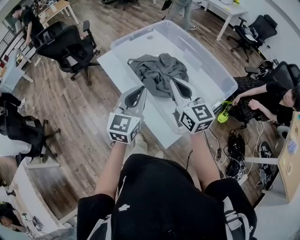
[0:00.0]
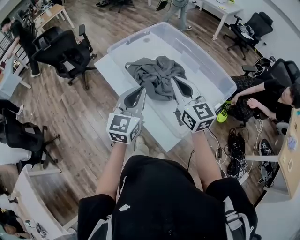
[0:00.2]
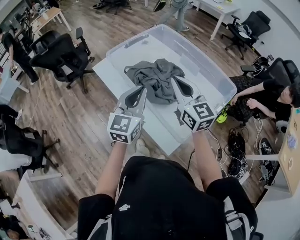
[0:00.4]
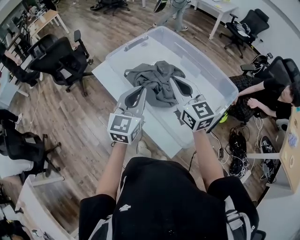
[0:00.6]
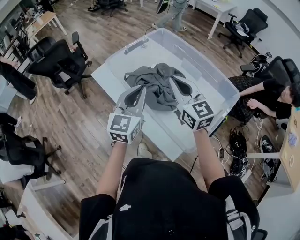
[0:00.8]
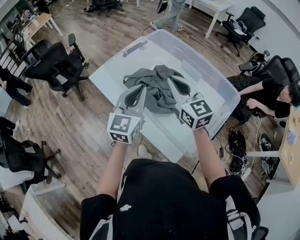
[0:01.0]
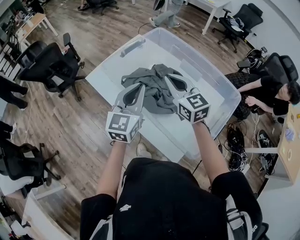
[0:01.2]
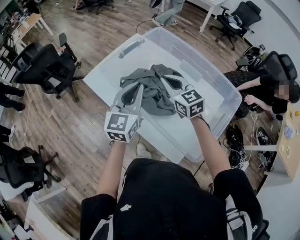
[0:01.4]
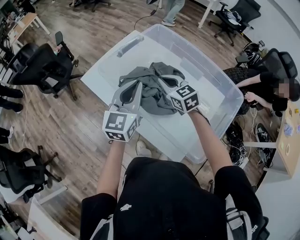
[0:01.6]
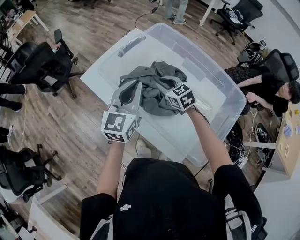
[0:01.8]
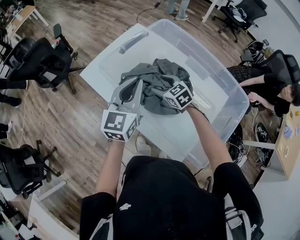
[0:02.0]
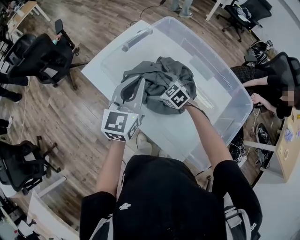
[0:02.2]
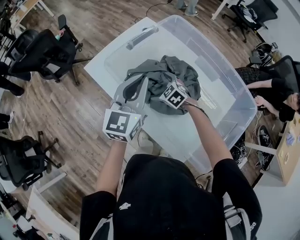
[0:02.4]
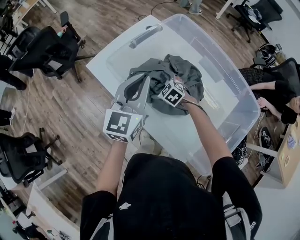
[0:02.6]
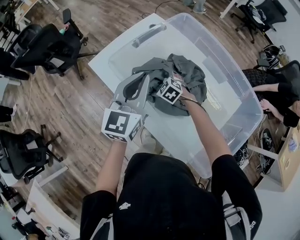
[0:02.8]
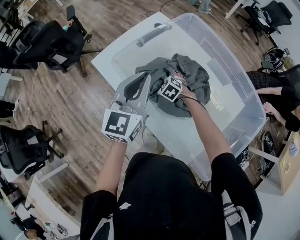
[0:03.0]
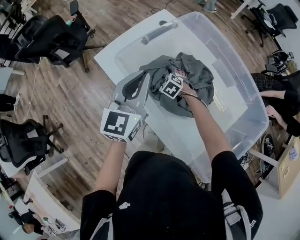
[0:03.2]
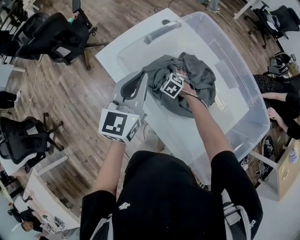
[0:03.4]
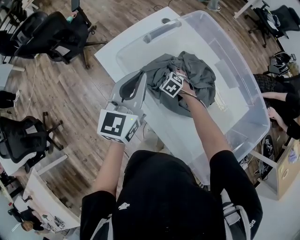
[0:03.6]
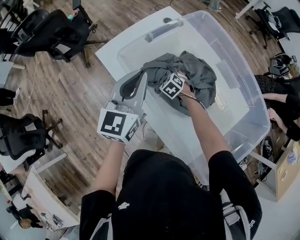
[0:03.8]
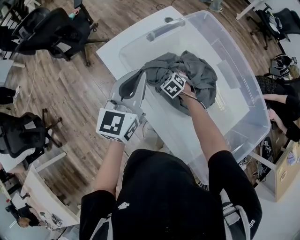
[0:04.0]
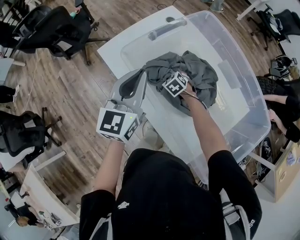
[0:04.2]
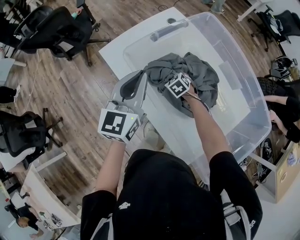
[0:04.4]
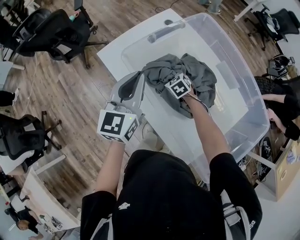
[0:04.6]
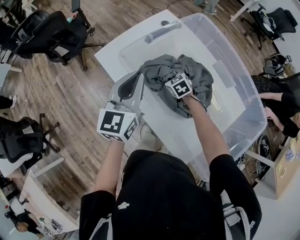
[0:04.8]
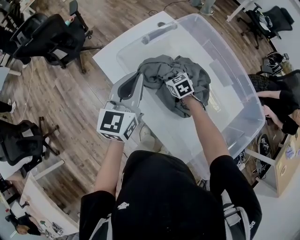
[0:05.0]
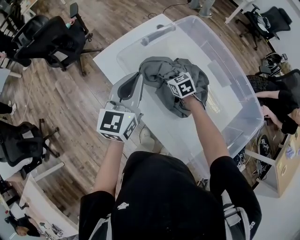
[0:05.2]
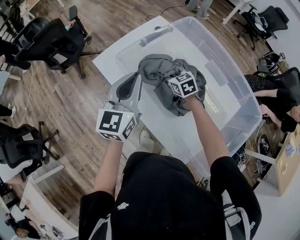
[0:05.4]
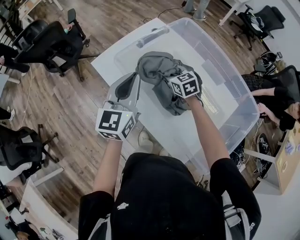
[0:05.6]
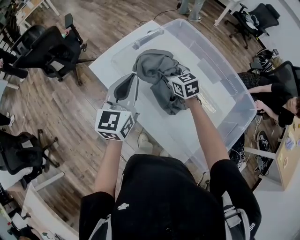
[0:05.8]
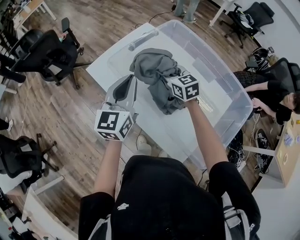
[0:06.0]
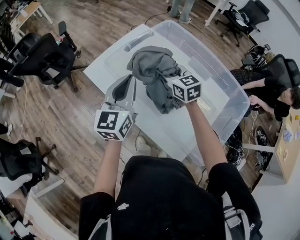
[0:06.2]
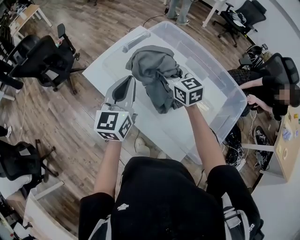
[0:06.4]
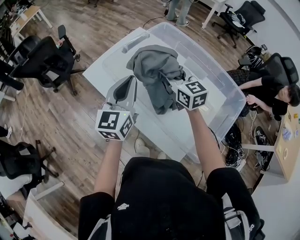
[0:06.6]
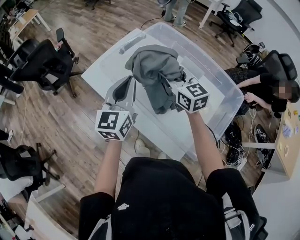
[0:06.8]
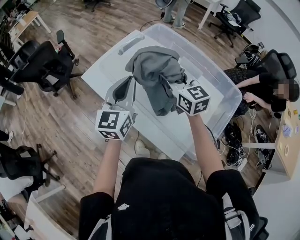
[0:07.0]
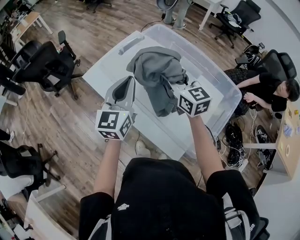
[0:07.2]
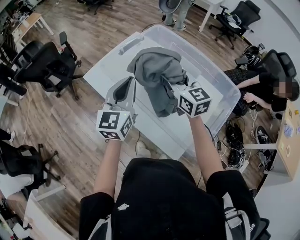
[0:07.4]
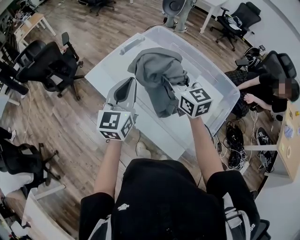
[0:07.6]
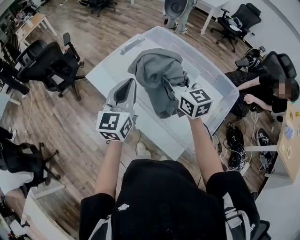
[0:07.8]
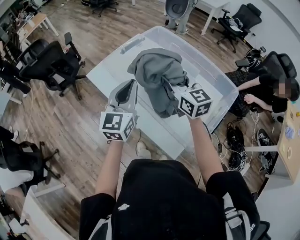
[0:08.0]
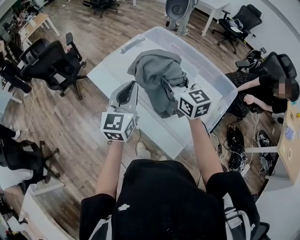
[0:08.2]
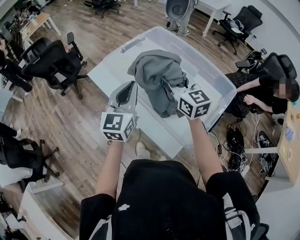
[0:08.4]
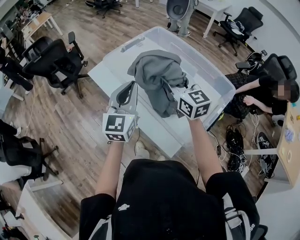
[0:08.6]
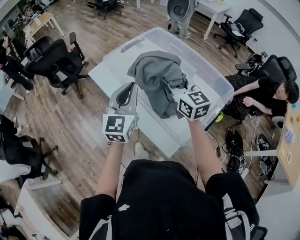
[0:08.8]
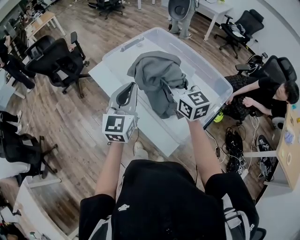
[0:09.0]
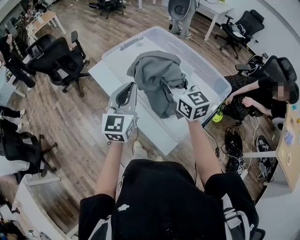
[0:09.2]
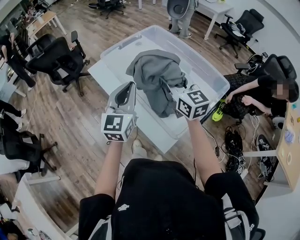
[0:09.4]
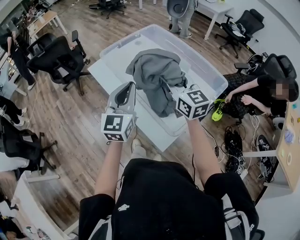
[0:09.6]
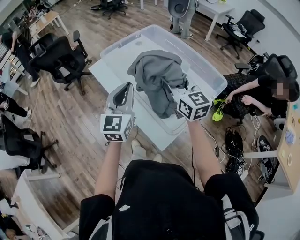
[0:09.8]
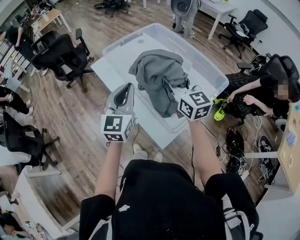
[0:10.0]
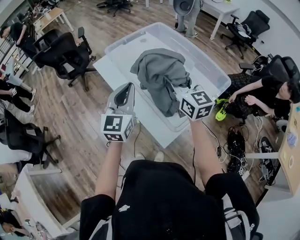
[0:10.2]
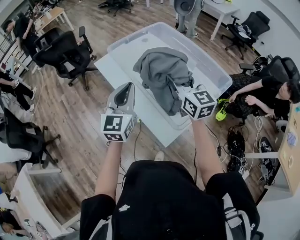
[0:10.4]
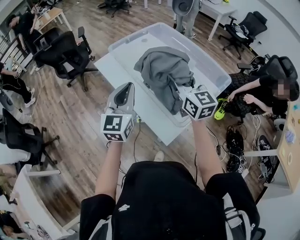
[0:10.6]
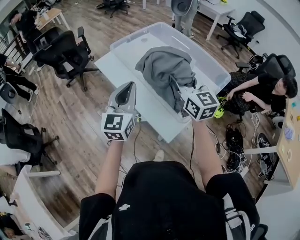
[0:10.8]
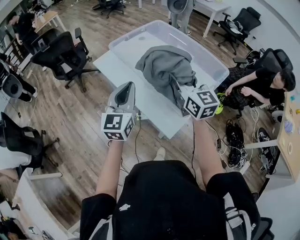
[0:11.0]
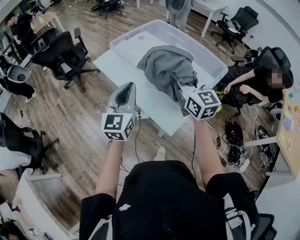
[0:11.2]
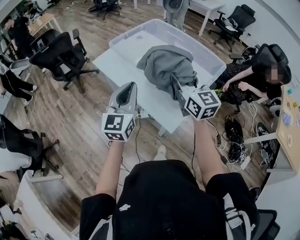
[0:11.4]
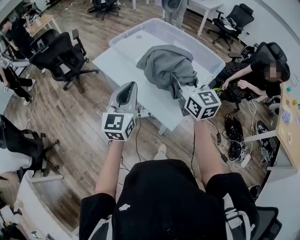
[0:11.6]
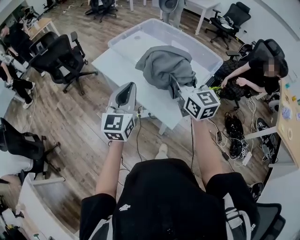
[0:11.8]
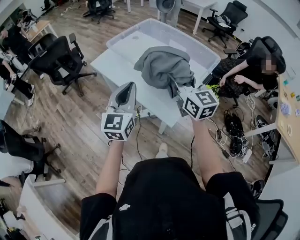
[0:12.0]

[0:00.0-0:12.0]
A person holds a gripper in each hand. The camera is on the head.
0:00.0 to 0:01.6: The right gripper is displaced forward and downward by some 25 cm, and swivels some 30 degrees. Meanwhile the left gripper is displaced forward by roughly 20 cm.
0:01.6 to 0:03.0: The right gripper goes some 25 cm downward, angles its fingers downward, by about 30 degrees, and opens up, while the left gripper goes about 5 cm forward.
0:03.0 to 0:04.4: The right gripper closes. Meanwhile the left gripper is displaced to the left by roughly 5 cm.
0:04.4 to 0:06.0: The right gripper travels upward by about 25 cm, and tips its fingers upward by roughly 30 degrees. The left gripper shifts by roughly 5 cm.
0:06.0 to 0:07.6: The left gripper shifts about 10 cm backward and to the right. Meanwhile the right gripper moves upward, backward and to the right, some 20 cm.
0:07.6 to 0:09.0: Both grippers move backward, some 5 cm.
0:09.0 to 0:10.4: Both grippers move backward, approximately 5 cm.
0:10.4 to 0:12.0: The grippers both shift backward by about 10 cm.

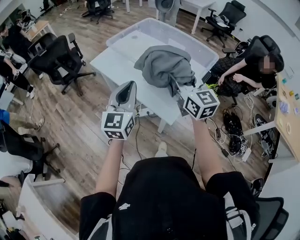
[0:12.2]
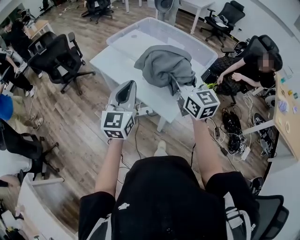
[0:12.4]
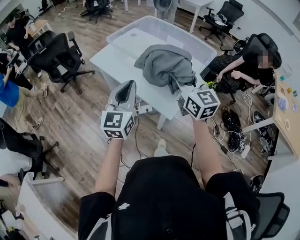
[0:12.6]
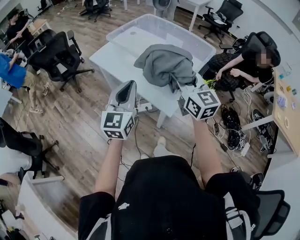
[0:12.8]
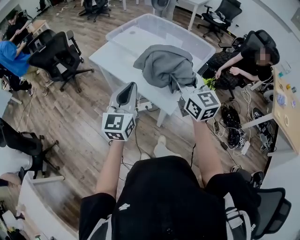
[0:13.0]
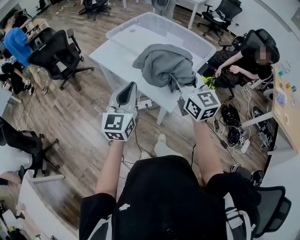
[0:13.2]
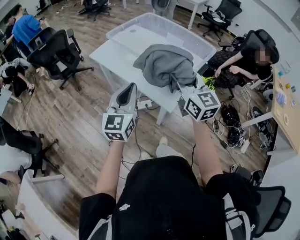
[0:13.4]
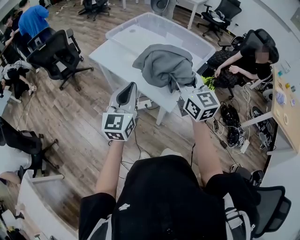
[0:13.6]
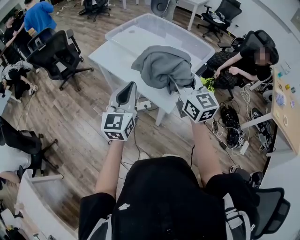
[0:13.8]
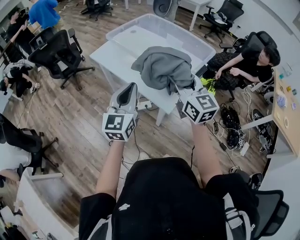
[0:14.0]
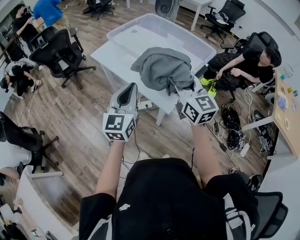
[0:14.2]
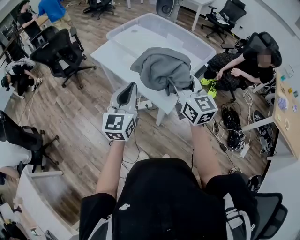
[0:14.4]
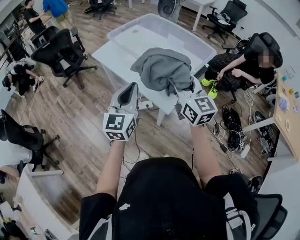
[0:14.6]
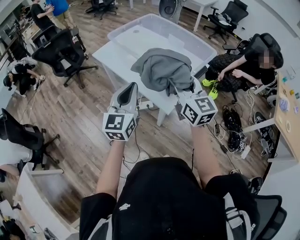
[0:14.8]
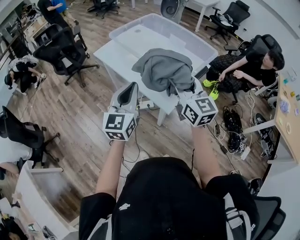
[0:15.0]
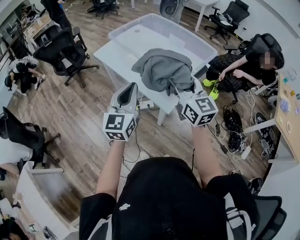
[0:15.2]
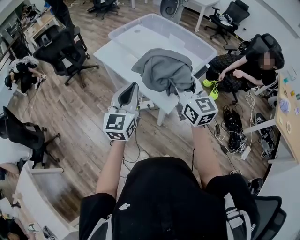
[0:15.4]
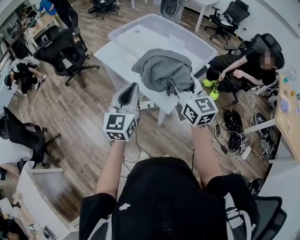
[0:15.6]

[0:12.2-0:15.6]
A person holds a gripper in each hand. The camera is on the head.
0:12.2 to 0:13.8: The grippers both shift backward by approximately 10 cm.
0:13.8 to 0:15.6: The grippers move only a little.

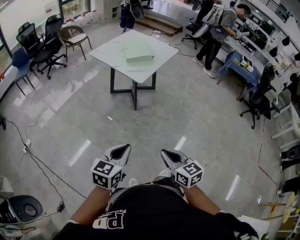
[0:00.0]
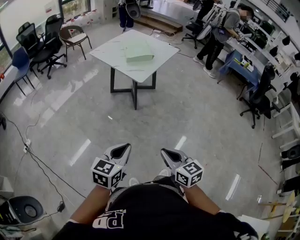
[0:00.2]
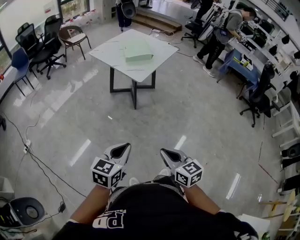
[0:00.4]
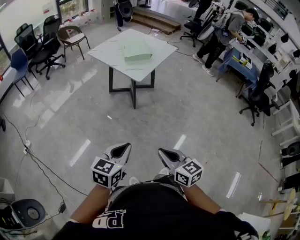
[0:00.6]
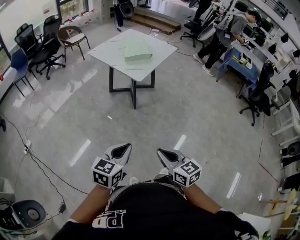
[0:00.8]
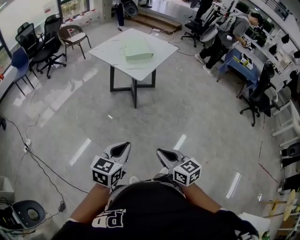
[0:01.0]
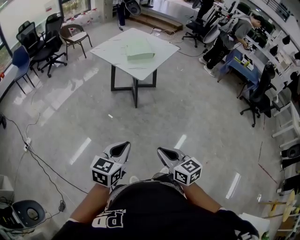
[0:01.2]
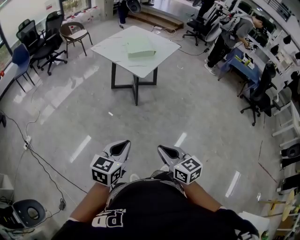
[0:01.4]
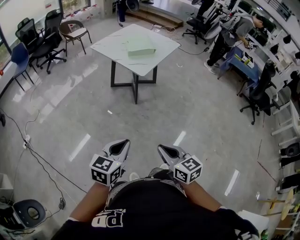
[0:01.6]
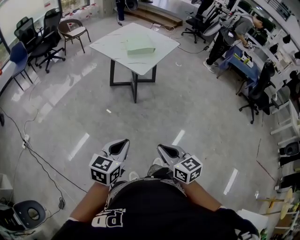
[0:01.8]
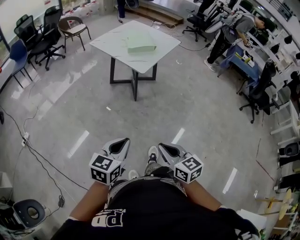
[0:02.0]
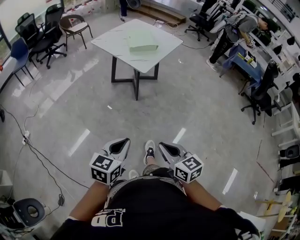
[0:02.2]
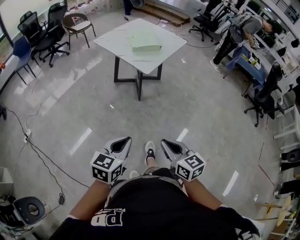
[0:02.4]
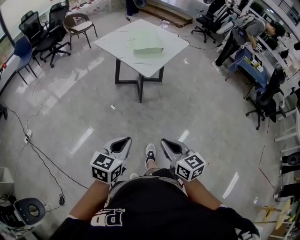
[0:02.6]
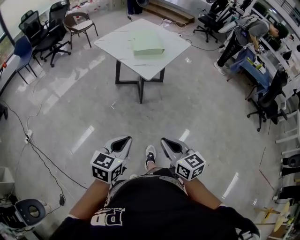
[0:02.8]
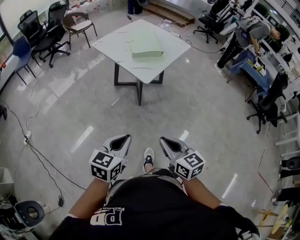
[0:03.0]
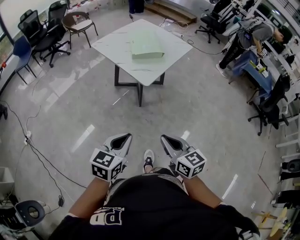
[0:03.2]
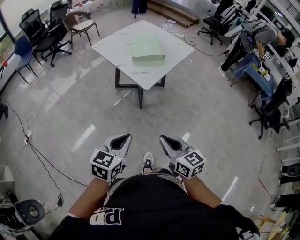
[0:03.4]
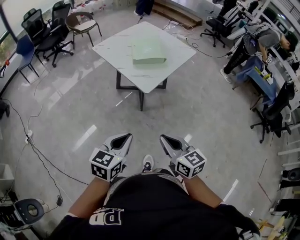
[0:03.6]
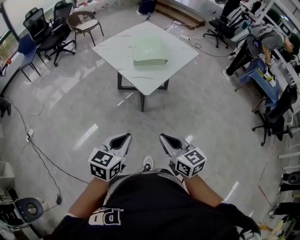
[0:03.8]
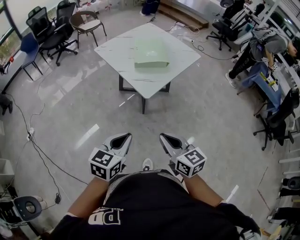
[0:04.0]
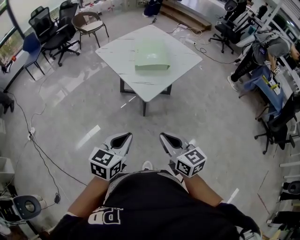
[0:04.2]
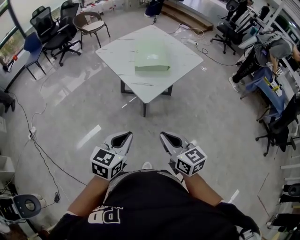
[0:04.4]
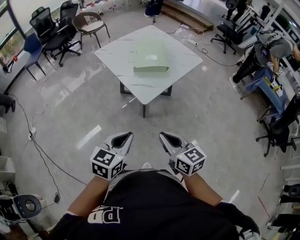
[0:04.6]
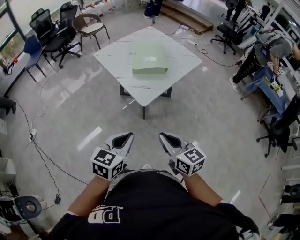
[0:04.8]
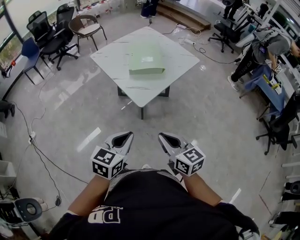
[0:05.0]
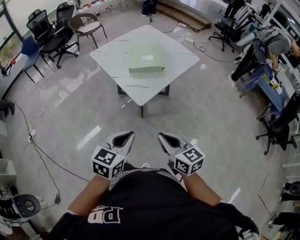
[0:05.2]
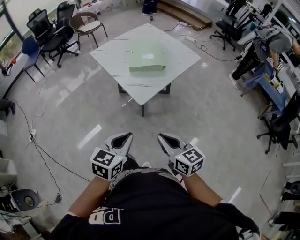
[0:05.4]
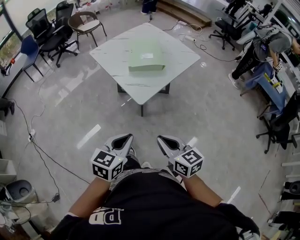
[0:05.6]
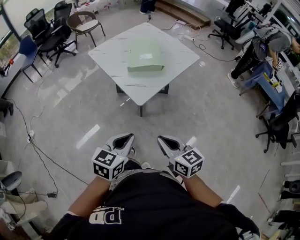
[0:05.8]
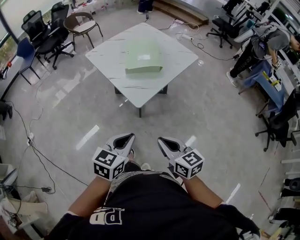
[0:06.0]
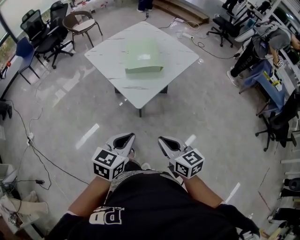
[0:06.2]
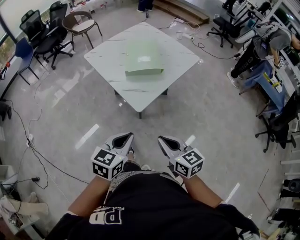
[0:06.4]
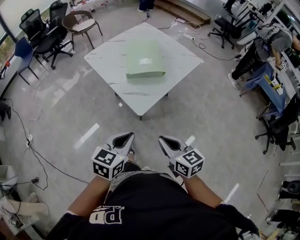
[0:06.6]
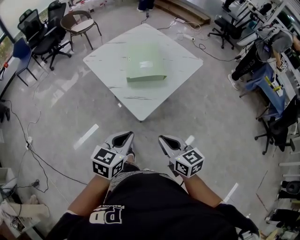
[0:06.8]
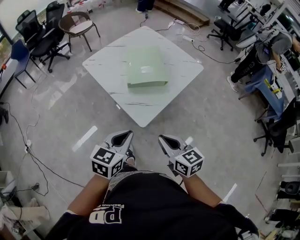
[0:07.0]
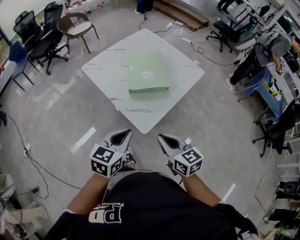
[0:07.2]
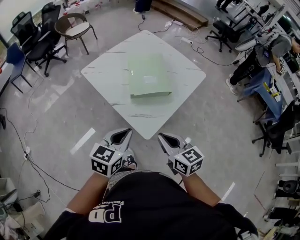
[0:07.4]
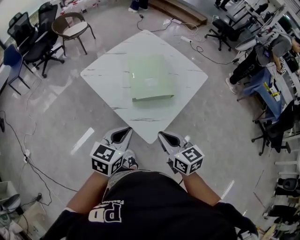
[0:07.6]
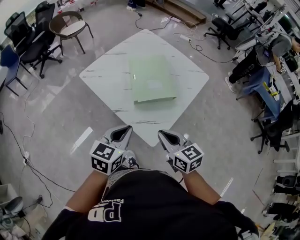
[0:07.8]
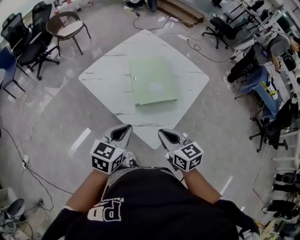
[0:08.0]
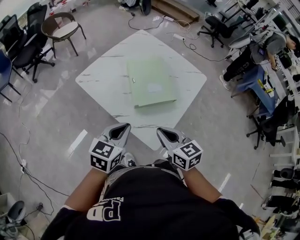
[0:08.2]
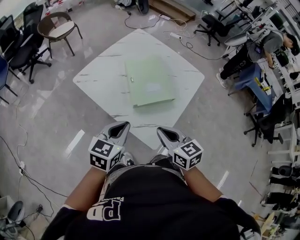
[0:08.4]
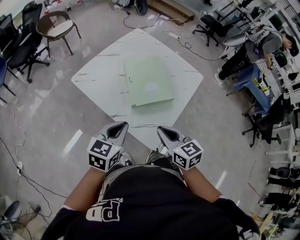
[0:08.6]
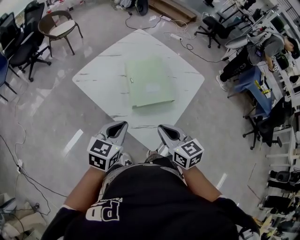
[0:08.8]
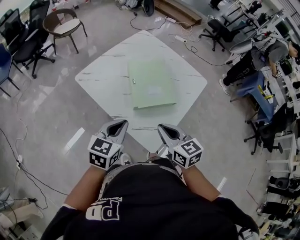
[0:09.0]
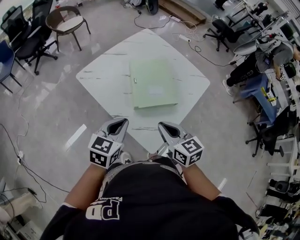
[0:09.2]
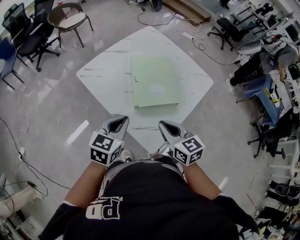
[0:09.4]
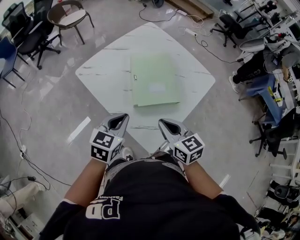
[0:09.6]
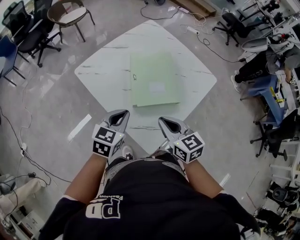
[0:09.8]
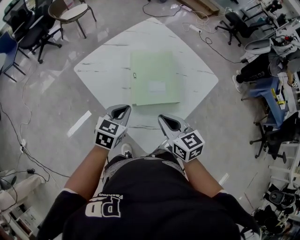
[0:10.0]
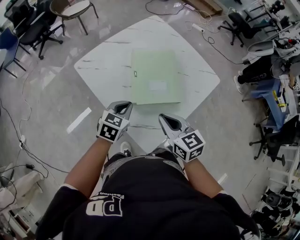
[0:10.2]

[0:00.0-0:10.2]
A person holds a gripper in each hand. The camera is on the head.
0:00.0 to 0:01.4: The grippers stay close to where they were, moving slightly.
0:01.4 to 0:03.0: Both grippers move forward, about 15 cm.
0:03.0 to 0:04.4: The right gripper moves forward, some 20 cm; the left gripper is displaced forward and to the right by roughly 15 cm.
0:04.4 to 0:05.8: The left gripper moves some 5 cm.
0:05.8 to 0:07.2: Both grippers travel together forward, some 20 cm.
0:07.2 to 0:08.8: The grippers both shift forward and to the left by some 15 cm.
0:08.8 to 0:10.2: The left gripper shifts about 15 cm forward and downward. The right gripper heads forward, covering about 10 cm.
